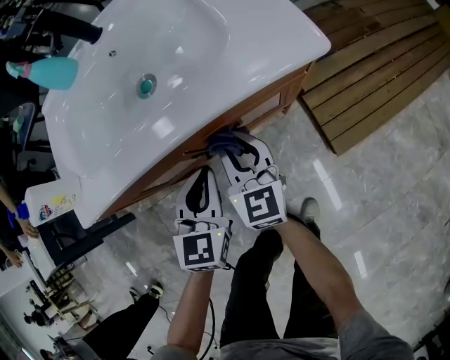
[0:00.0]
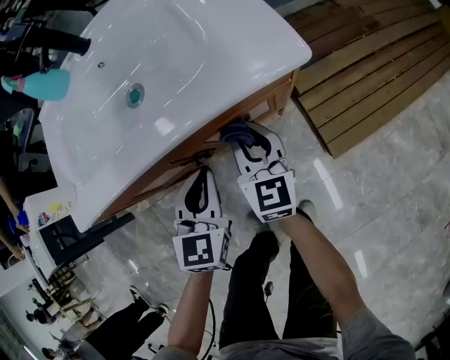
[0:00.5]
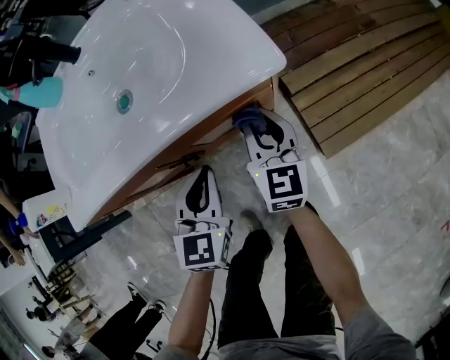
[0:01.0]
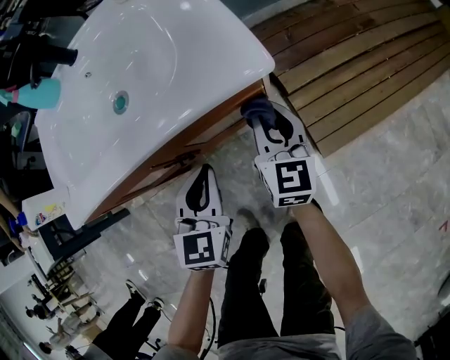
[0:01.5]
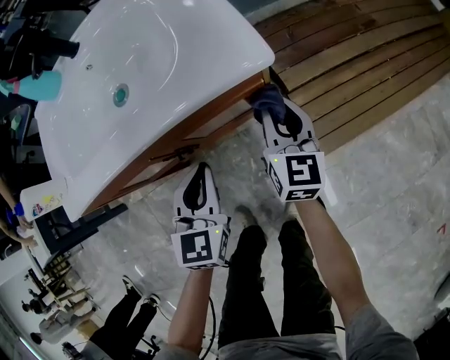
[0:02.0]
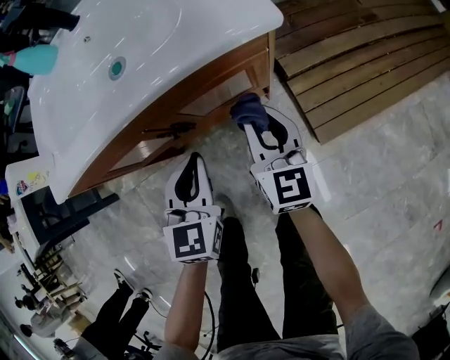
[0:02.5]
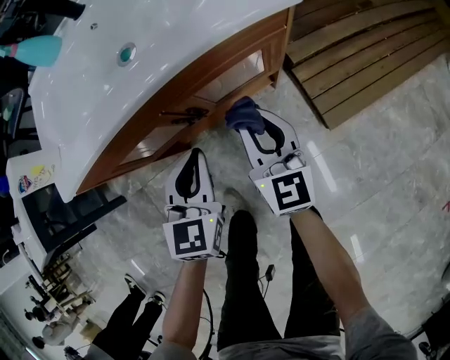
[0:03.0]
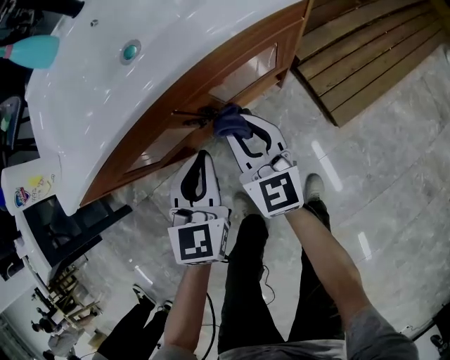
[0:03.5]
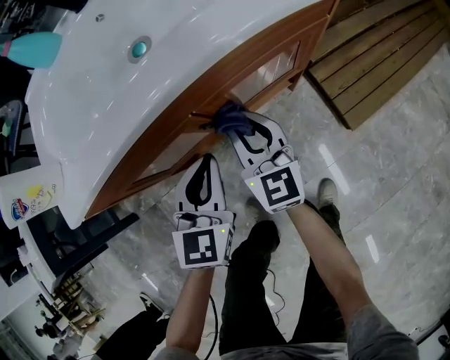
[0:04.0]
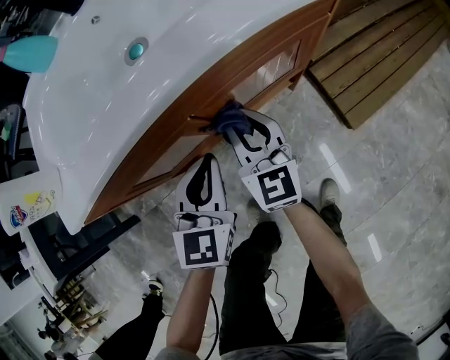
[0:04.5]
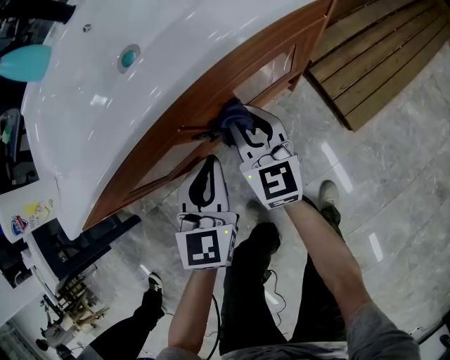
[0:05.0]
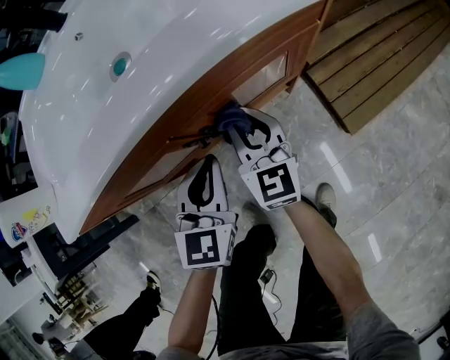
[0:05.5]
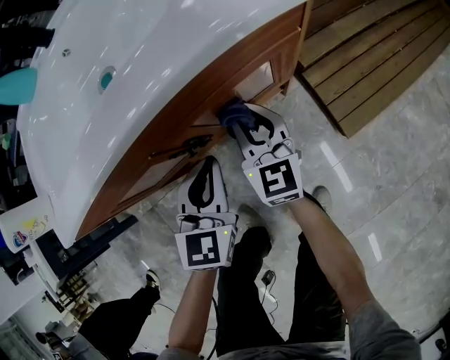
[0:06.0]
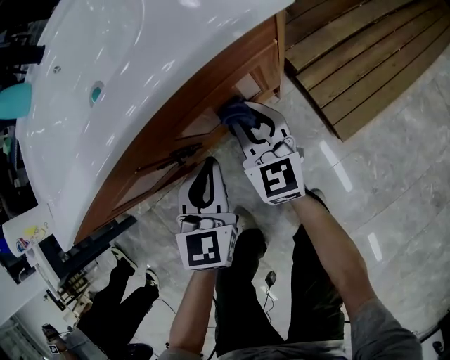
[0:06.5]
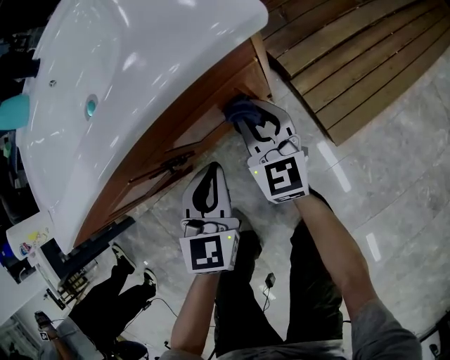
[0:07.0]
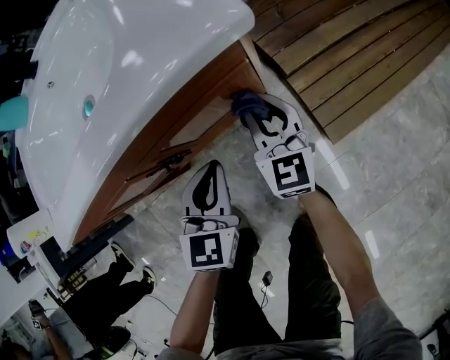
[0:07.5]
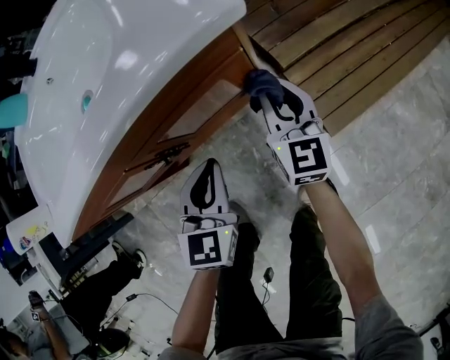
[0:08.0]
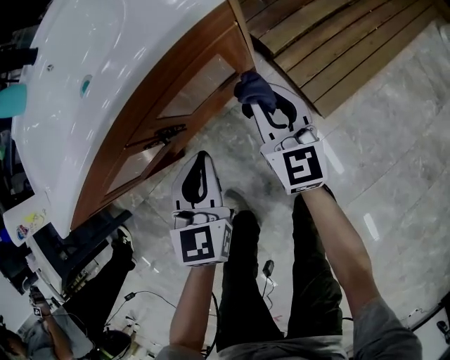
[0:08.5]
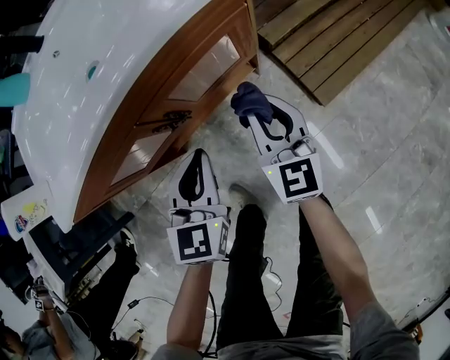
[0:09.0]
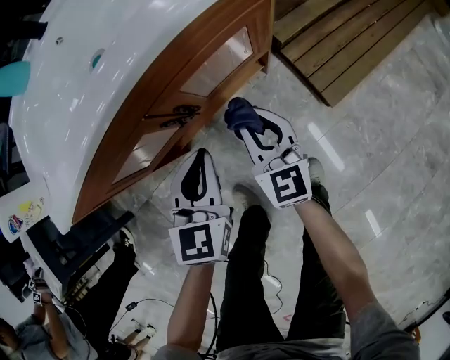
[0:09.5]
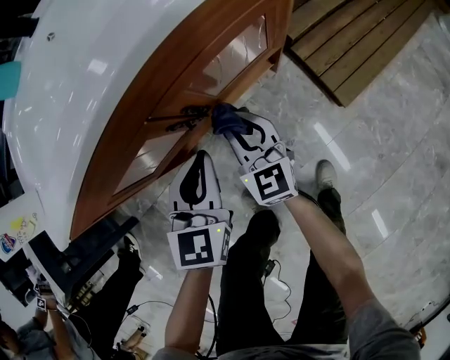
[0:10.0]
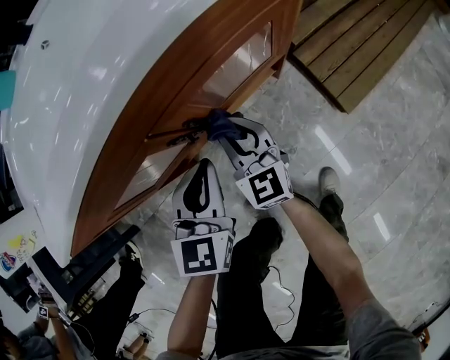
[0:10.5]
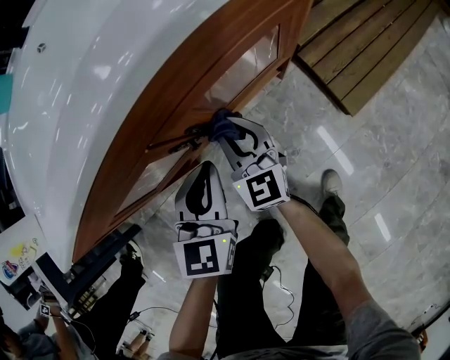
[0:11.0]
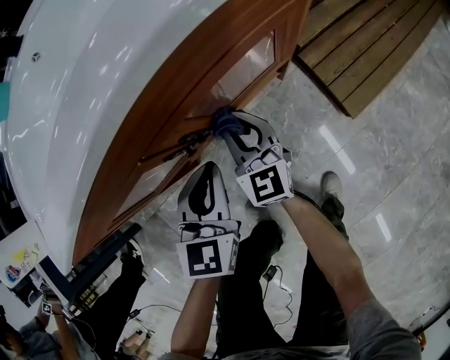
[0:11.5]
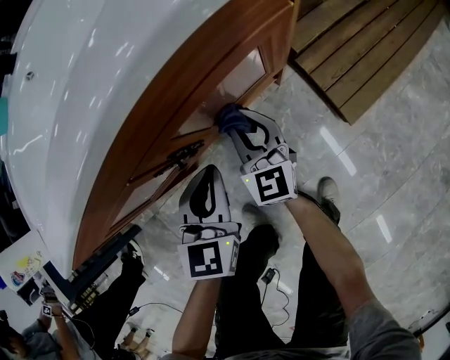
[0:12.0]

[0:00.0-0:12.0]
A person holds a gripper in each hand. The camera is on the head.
0:00.0 to 0:02.0: The right gripper moves to the right, roughly 20 cm. The left gripper heads to the right, covering about 10 cm.
0:02.0 to 0:04.0: The right gripper is displaced to the left by some 25 cm, while the left gripper goes approximately 15 cm to the left.
0:04.0 to 0:06.0: The two grippers go about 10 cm to the right.
0:06.0 to 0:08.0: The left gripper moves to the right, roughly 10 cm. The right gripper moves to the right, about 15 cm.
0:08.0 to 0:10.0: The right gripper heads to the left and backward, covering roughly 25 cm; the left gripper moves to the left, roughly 10 cm.
0:10.0 to 0:12.0: The right gripper goes some 5 cm forward. The left gripper shifts by about 5 cm.

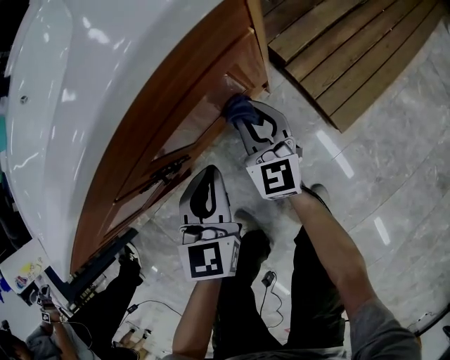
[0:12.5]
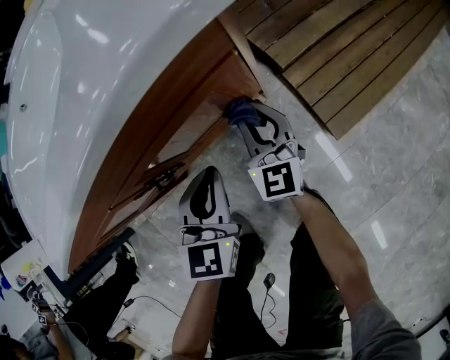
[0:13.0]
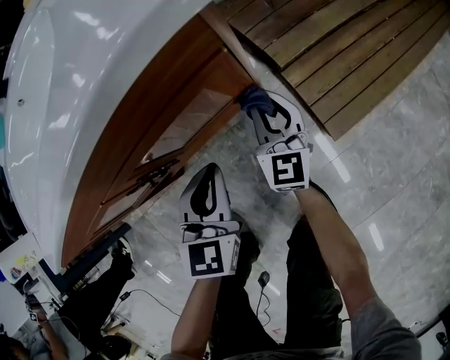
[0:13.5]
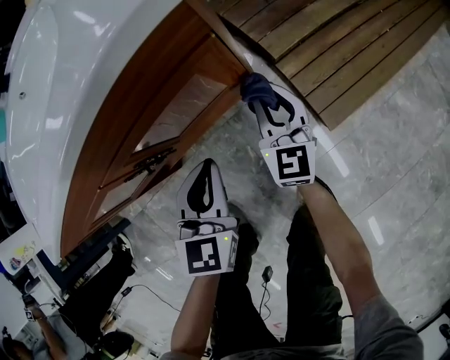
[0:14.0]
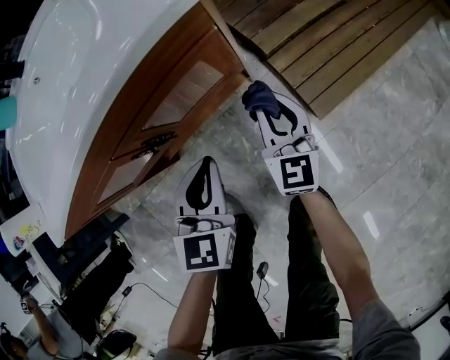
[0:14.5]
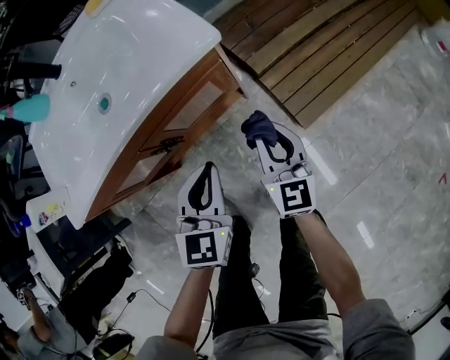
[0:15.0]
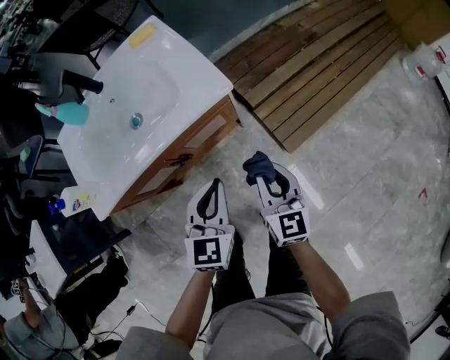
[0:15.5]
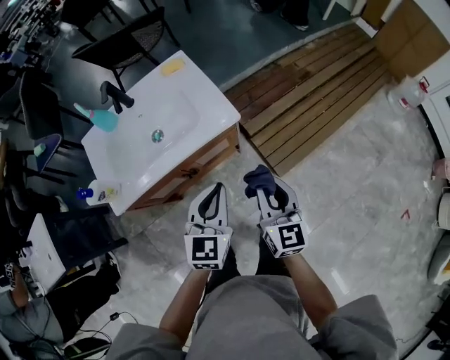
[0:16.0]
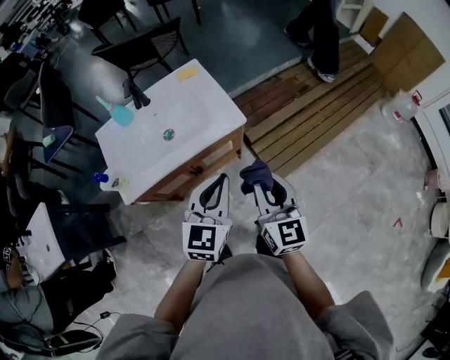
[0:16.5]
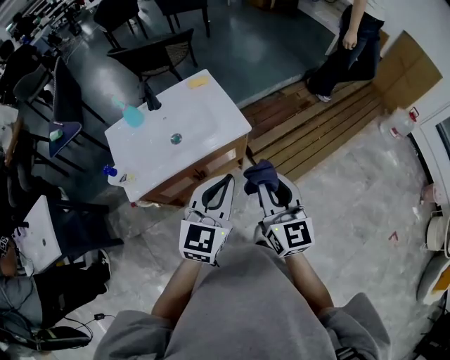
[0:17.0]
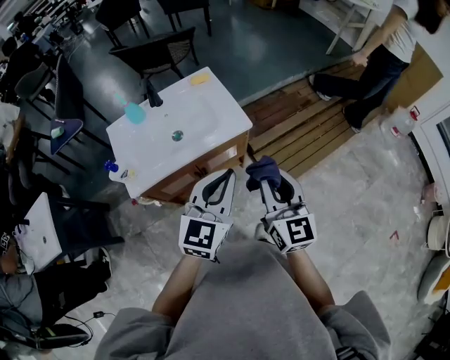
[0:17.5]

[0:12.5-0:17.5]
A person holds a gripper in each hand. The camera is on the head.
0:12.5 to 0:15.0: The left gripper travels upward by approximately 15 cm, while the right gripper shifts roughly 25 cm upward, backward and to the right.
0:15.0 to 0:17.5: The grippers both shift upward by some 40 cm. The left gripper changes its angle by roughly 20 degrees.

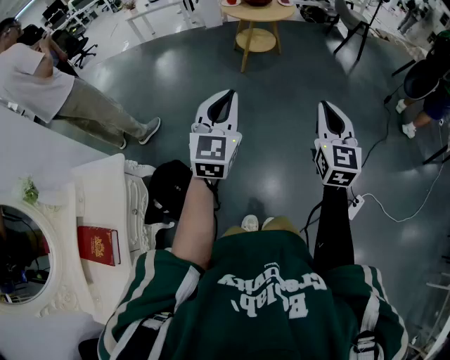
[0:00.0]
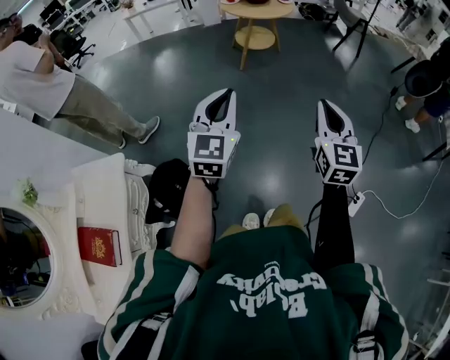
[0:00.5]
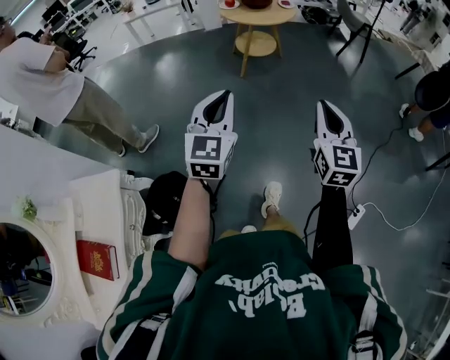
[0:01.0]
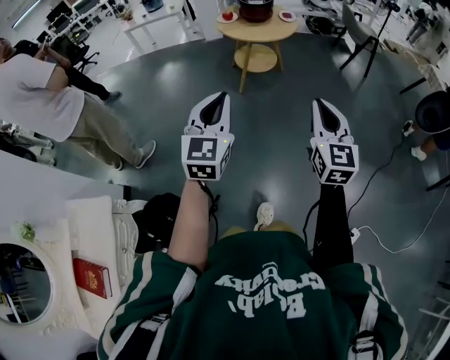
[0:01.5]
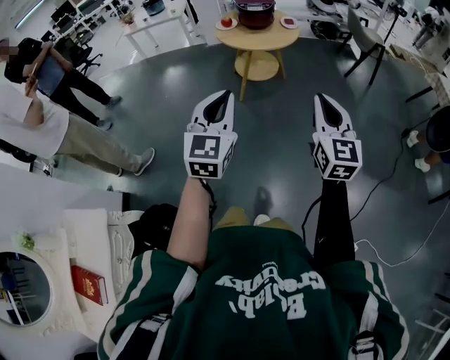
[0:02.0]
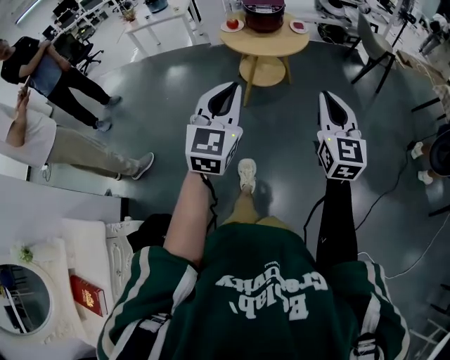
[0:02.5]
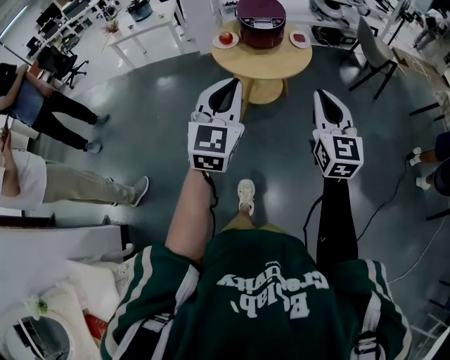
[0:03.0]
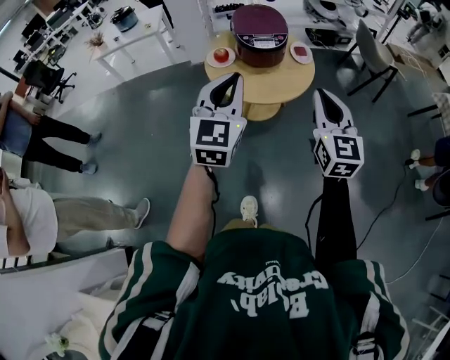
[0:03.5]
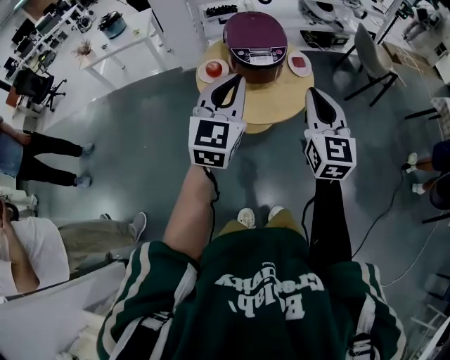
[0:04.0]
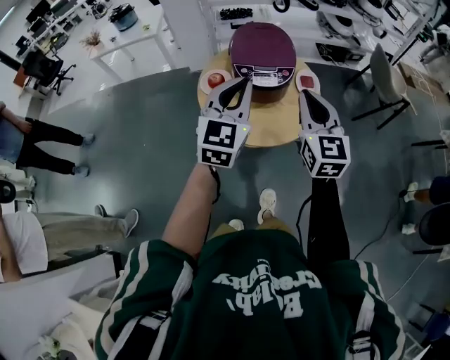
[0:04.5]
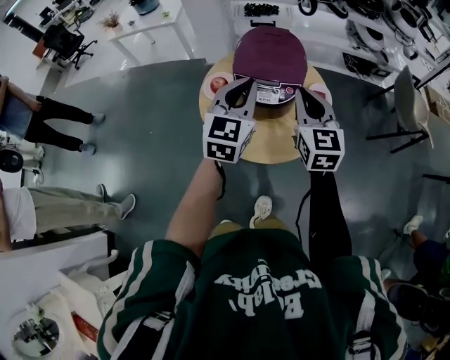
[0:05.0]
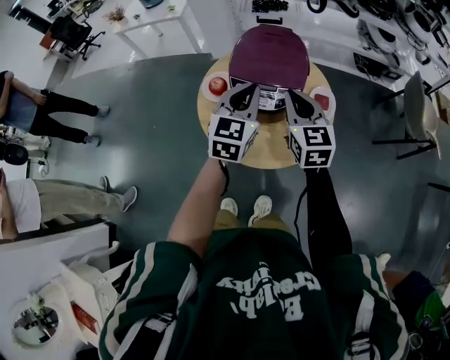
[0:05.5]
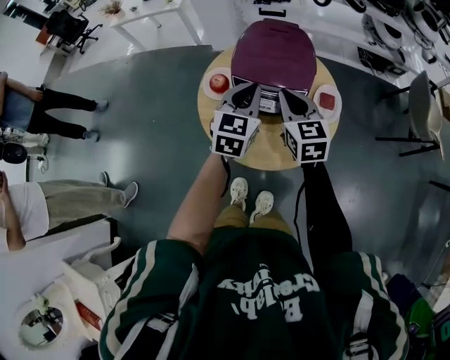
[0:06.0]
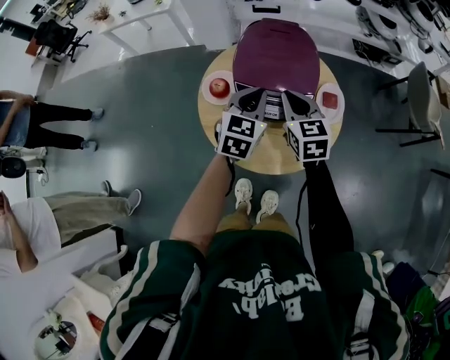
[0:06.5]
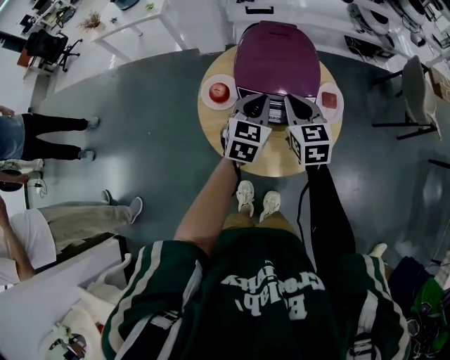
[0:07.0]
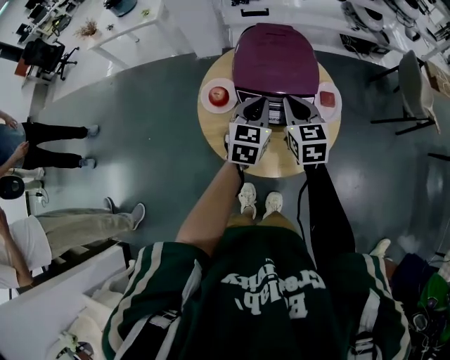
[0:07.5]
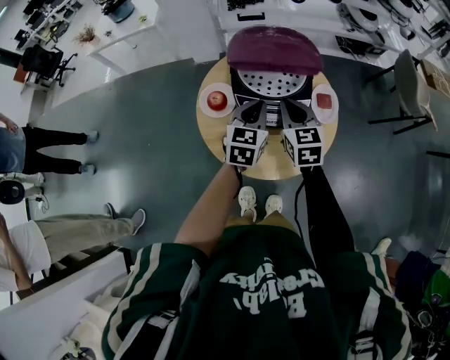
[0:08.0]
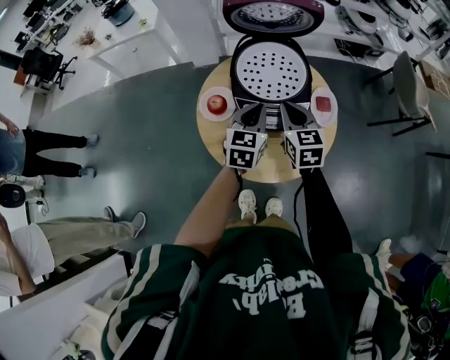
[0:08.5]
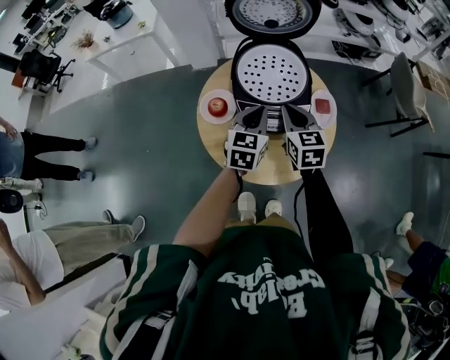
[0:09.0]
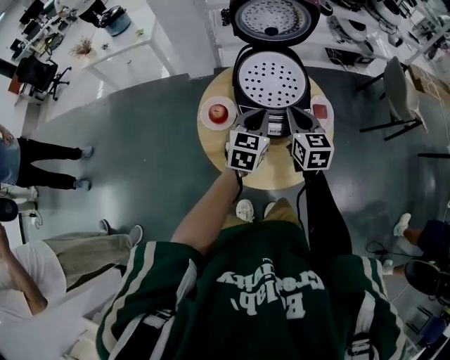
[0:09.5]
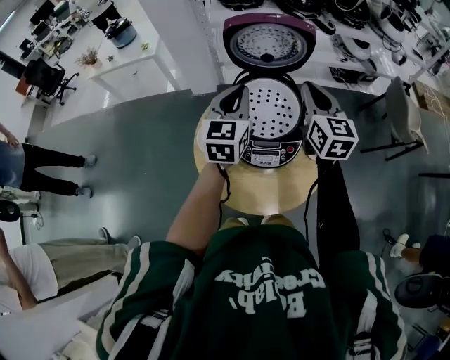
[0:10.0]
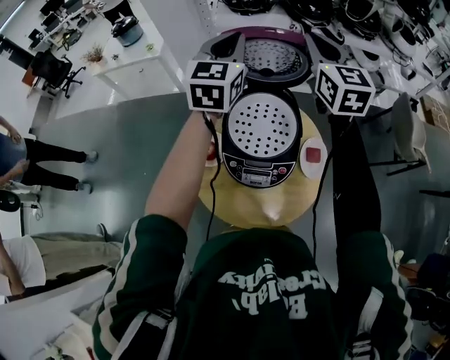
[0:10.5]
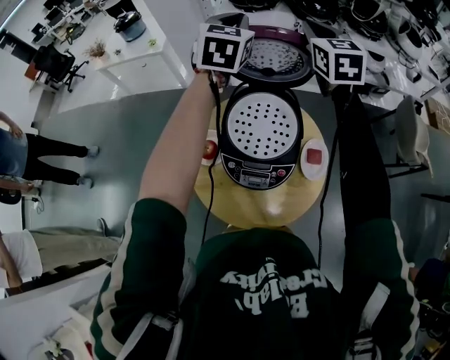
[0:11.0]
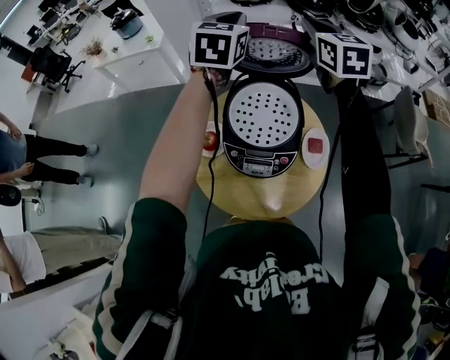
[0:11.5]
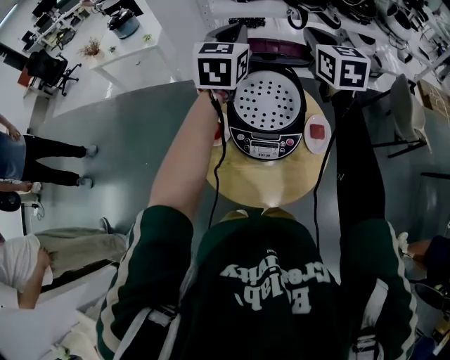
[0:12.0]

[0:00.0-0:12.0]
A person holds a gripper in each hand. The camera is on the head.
0:00.0 to 0:02.0: The grippers both shift forward by approximately 35 cm.
0:02.0 to 0:04.0: The pair of grippers is taken forward, approximately 60 cm.
0:04.0 to 0:06.0: The two grippers go roughly 35 cm forward and downward. The left gripper turns by approximately 20 degrees; the right gripper turns by approximately 30 degrees.
0:06.0 to 0:08.0: The left gripper travels downward by approximately 5 cm.
0:08.0 to 0:10.0: The grippers both shift upward and forward by about 20 cm.
0:10.0 to 0:12.0: Both grippers travel together forward and upward, approximately 15 cm.
